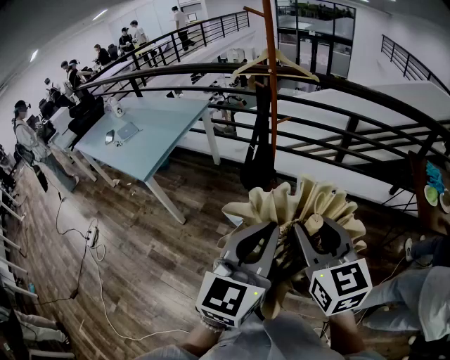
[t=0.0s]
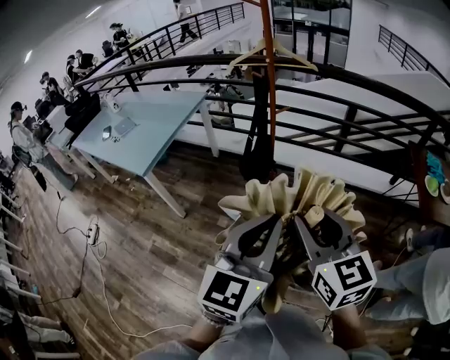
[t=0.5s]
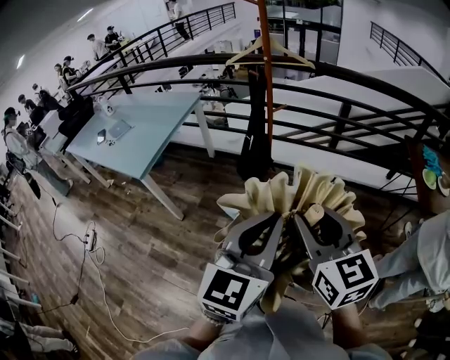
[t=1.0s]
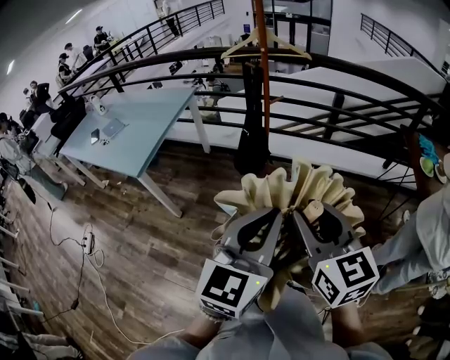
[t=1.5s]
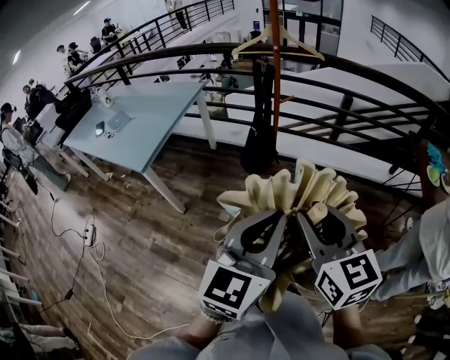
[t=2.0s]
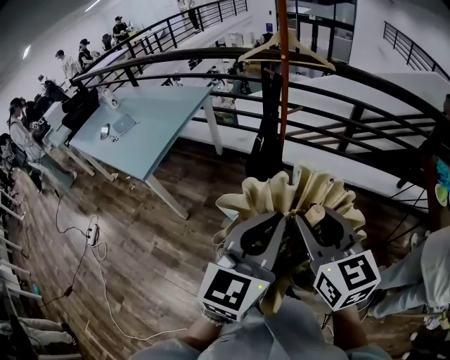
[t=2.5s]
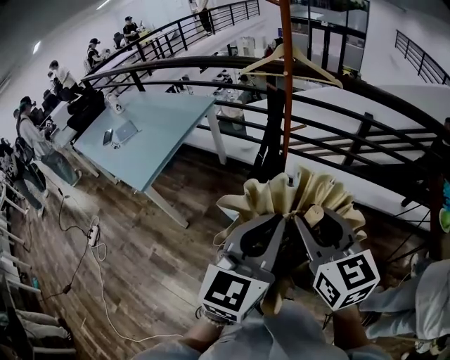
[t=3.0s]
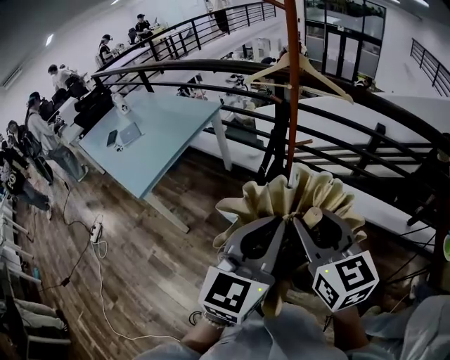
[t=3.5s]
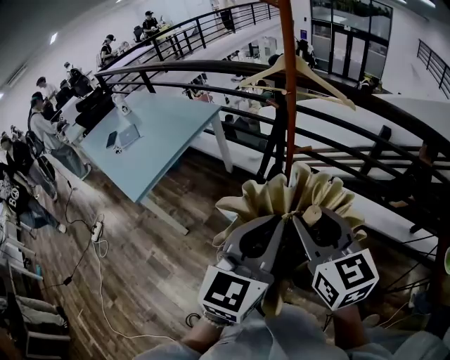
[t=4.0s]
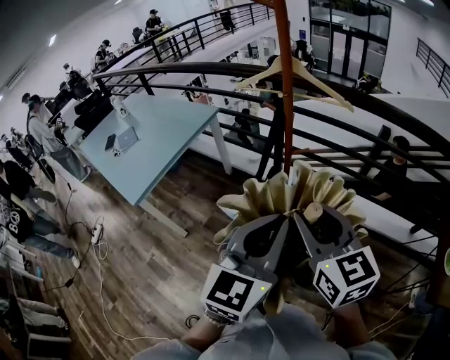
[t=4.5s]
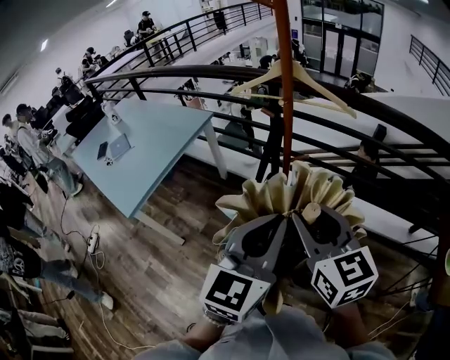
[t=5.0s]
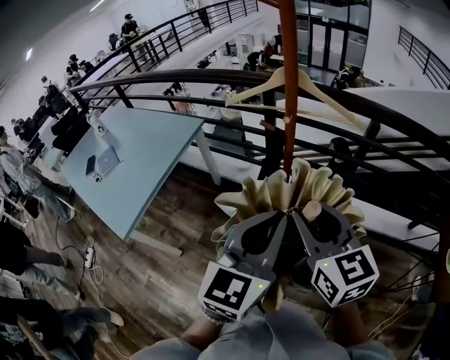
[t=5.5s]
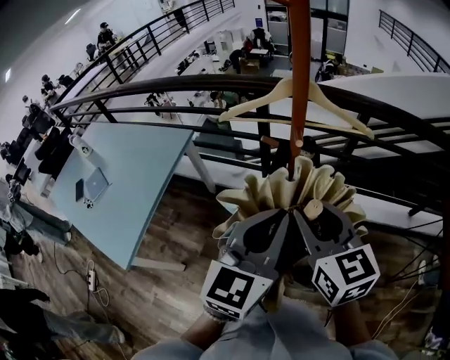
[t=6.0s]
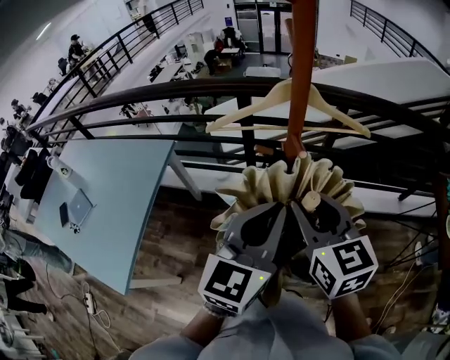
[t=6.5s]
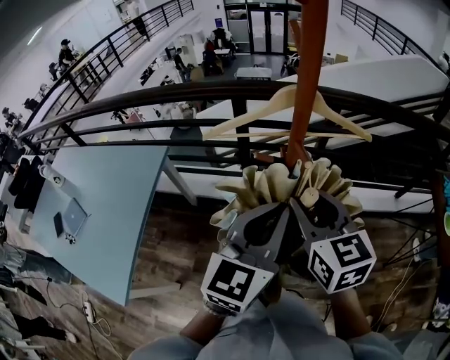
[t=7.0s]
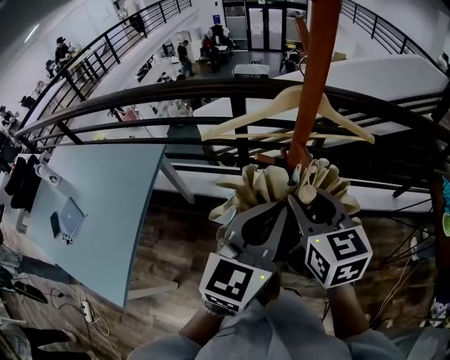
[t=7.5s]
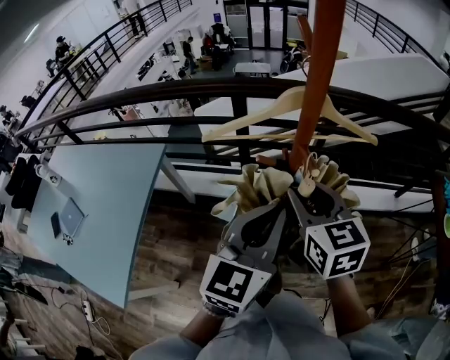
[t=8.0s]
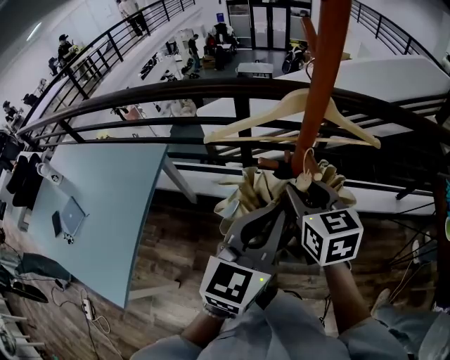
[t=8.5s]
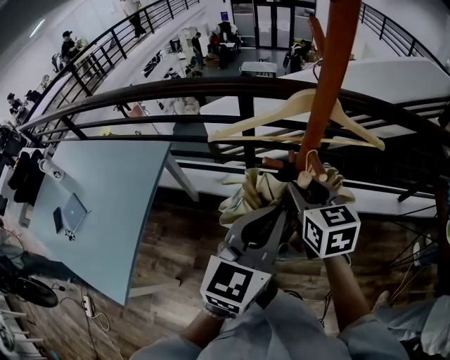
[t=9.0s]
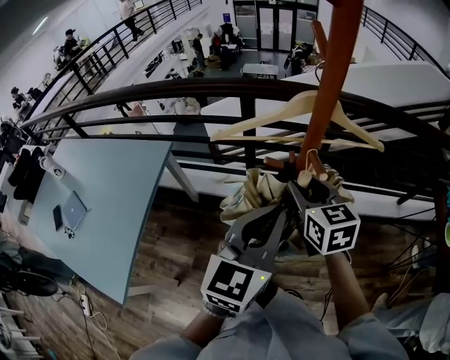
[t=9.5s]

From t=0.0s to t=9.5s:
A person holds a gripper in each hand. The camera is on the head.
From t=0.0s to t=2.0s: The left gripper changes place by roughly 5 cm; the right gripper travels to the left by roughly 5 cm.
From t=2.0s to t=4.0s: Both grippers travel together forward, some 25 cm.
From t=4.0s to t=5.5s: The grippers both shift forward by roughly 15 cm.
From t=5.5s to t=7.5s: The left gripper moves forward and to the left, roughly 15 cm; the right gripper shifts about 15 cm forward, and turns by some 20 degrees.
From t=7.5s to t=9.5s: The right gripper travels forward and downward by about 10 cm.

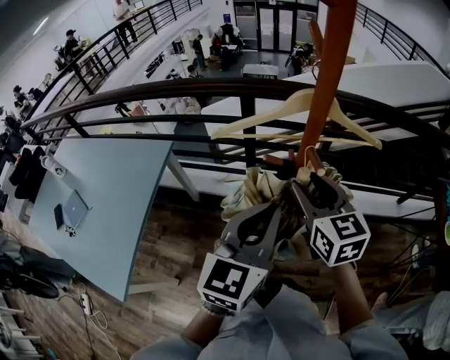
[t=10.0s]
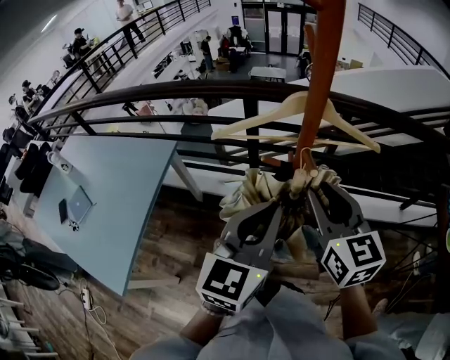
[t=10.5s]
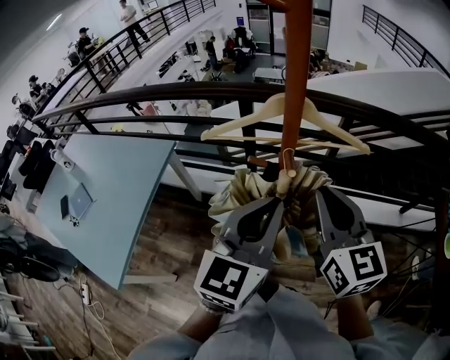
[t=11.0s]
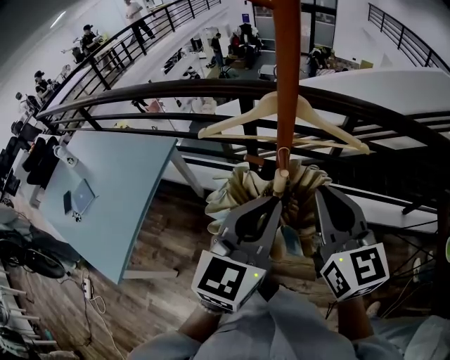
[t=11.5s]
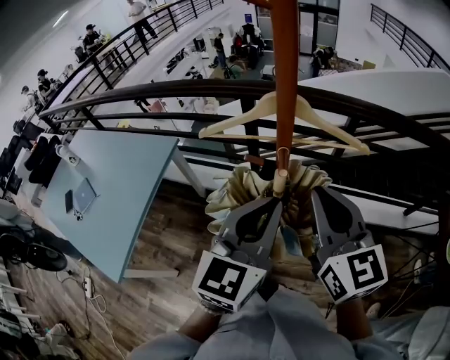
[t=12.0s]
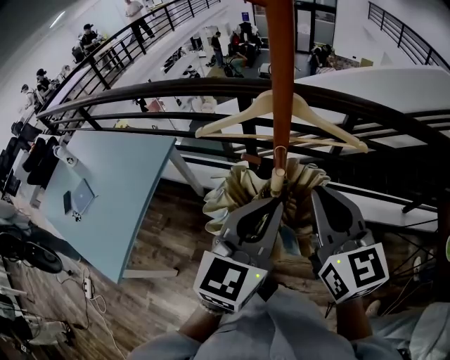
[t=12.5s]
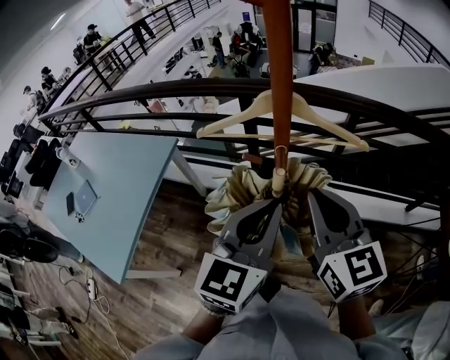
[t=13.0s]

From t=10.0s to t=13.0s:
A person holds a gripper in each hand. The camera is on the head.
From t=10.0s to t=11.5s: The right gripper heads upward, to the right and backward, covering roughly 10 cm, and closes. The left gripper is displaced to the right by roughly 5 cm.
From t=11.5s to t=13.0s: Both grippers stay about where they are.

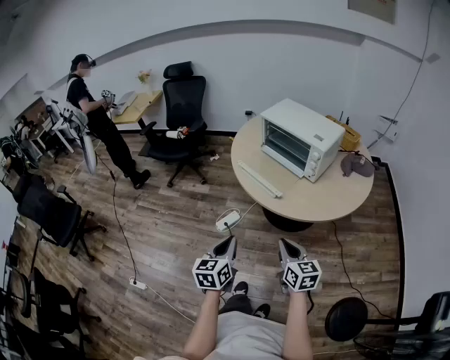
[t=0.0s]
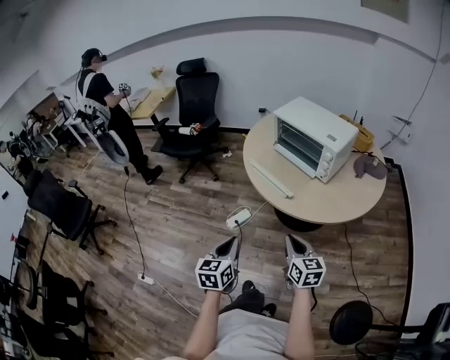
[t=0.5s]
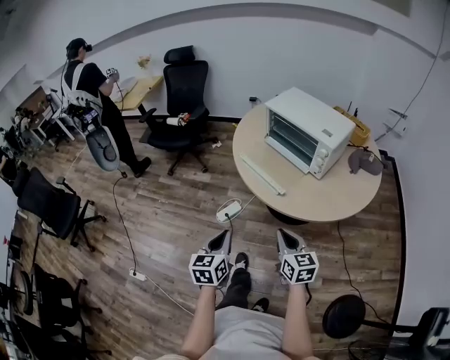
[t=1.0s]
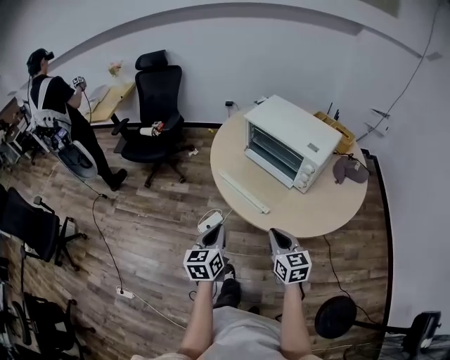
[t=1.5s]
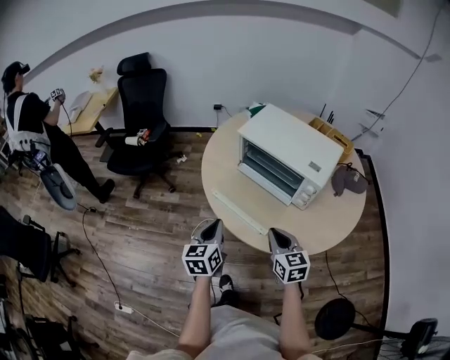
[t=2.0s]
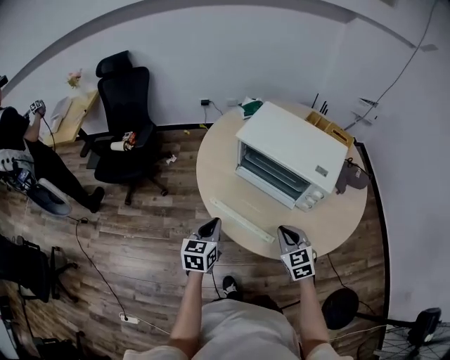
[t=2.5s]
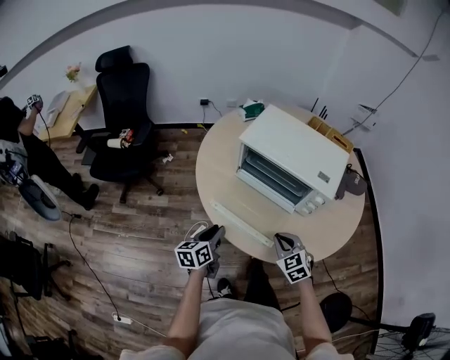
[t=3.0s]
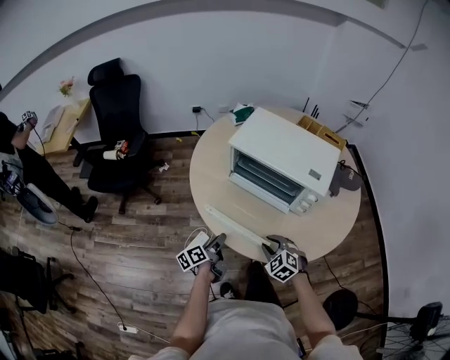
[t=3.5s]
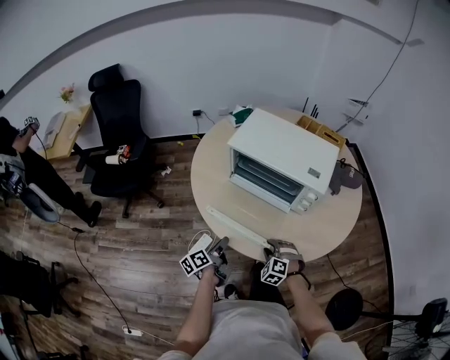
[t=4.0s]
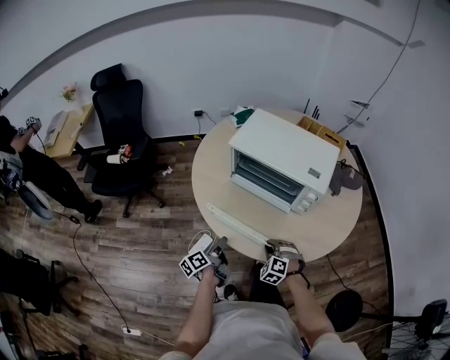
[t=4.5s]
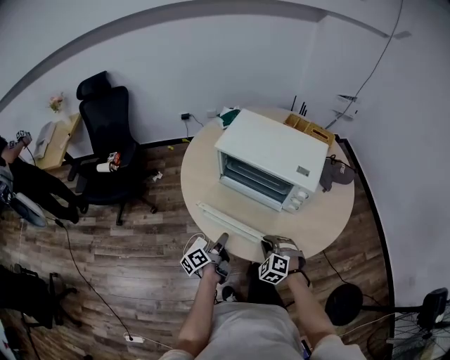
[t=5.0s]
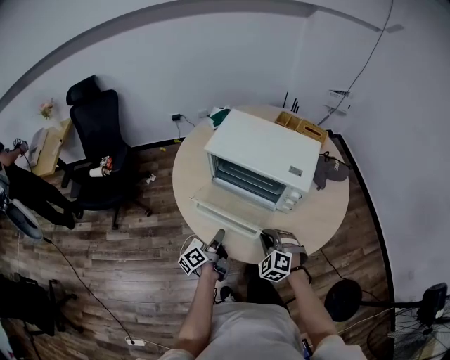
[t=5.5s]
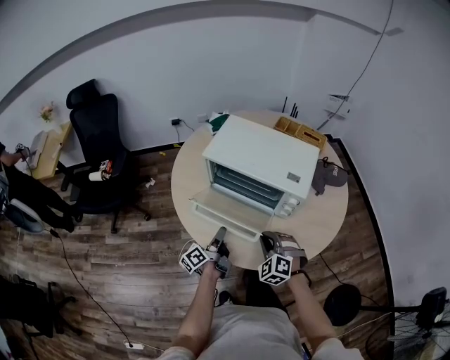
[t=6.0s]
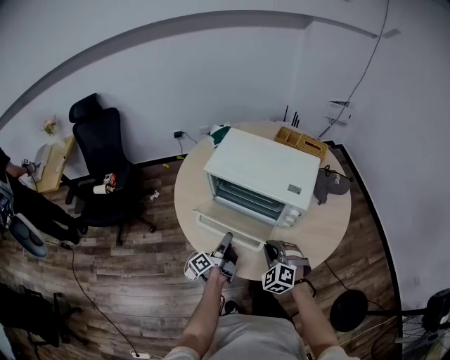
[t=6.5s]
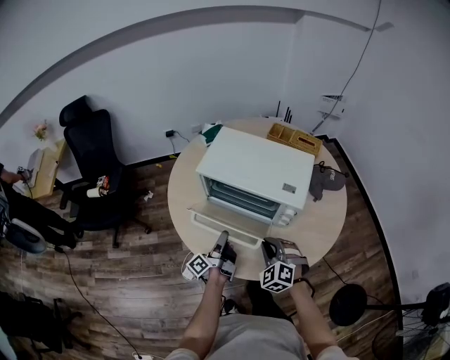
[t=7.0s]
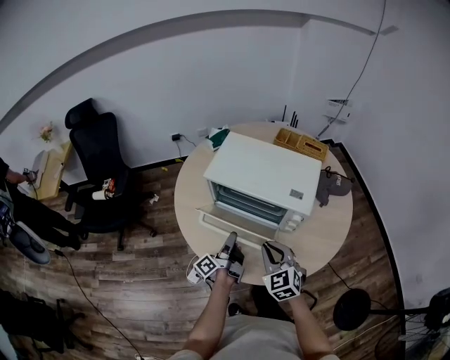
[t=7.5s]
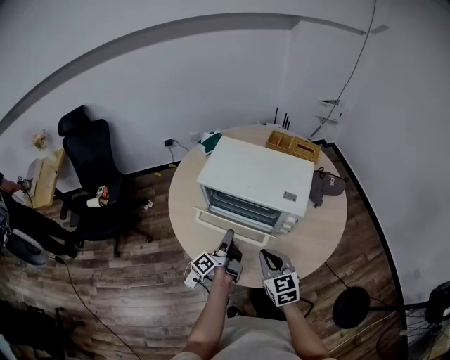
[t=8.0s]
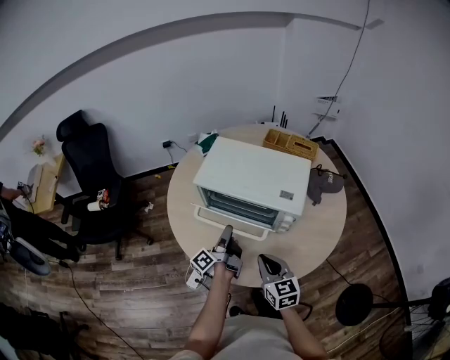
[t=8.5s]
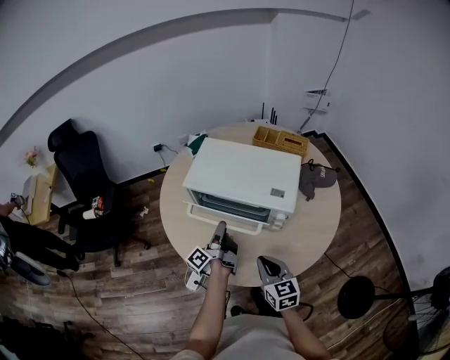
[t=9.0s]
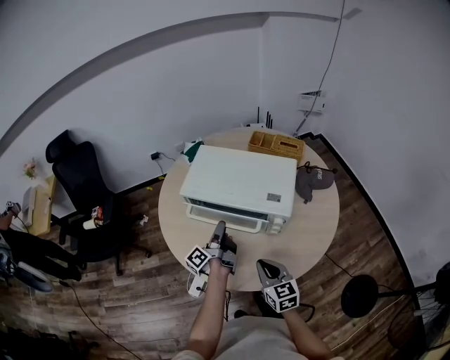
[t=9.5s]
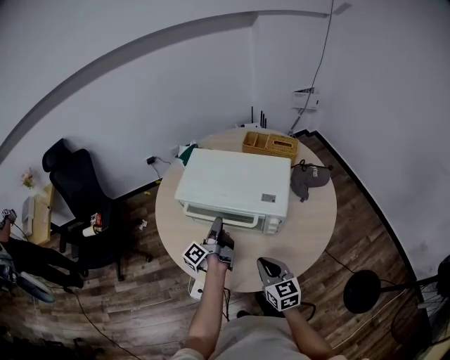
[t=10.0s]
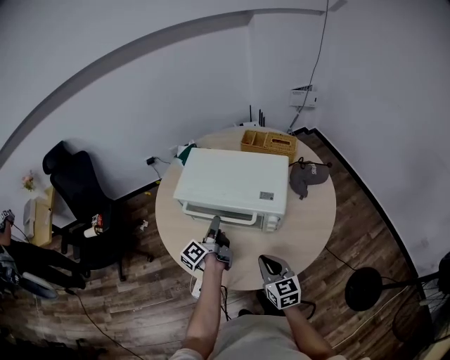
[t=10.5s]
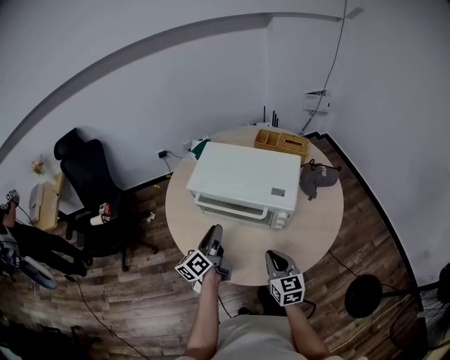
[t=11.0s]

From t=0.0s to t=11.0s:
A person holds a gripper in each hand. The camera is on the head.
From t=0.0s to t=2.0s: Both grippers travel together forward, roughly 30 cm.
From t=2.0s to t=3.5s: The grippers both shift downward by about 15 cm. The right gripper rotates approximately 50 degrees. Meanwhile the left gripper twists some 50 degrees counterclockwise, seen from behind, and opens.
From t=3.5s to t=5.5s: The left gripper moves roughly 5 cm. Meanwhile the right gripper shifts roughly 5 cm upward.
From t=5.5s to t=7.5s: The right gripper is displaced upward by some 10 cm, and turns by roughly 40 degrees; the left gripper goes about 10 cm forward.
From t=7.5s to t=9.0s: The right gripper changes its angle by about 30 degrees; the left gripper travels forward by roughly 5 cm.
From t=9.0s to t=11.0s: The left gripper is displaced upward by about 5 cm, and rotates approximately 40 degrees.

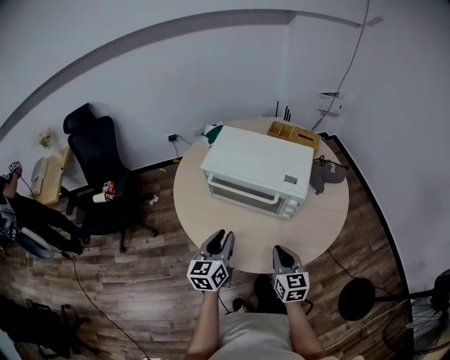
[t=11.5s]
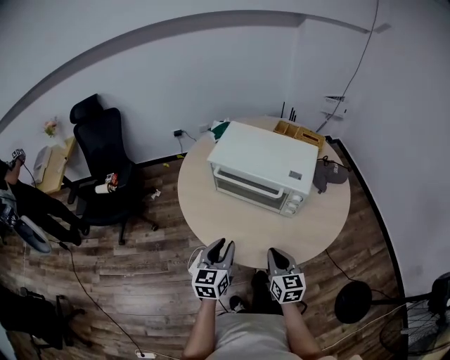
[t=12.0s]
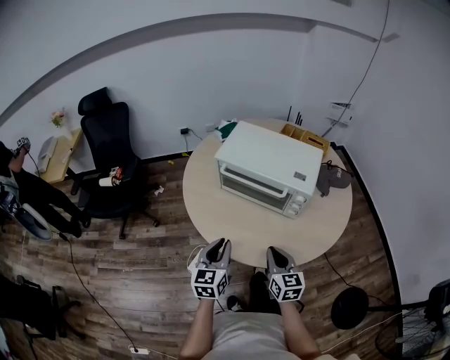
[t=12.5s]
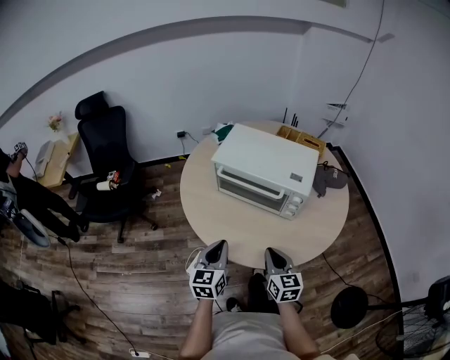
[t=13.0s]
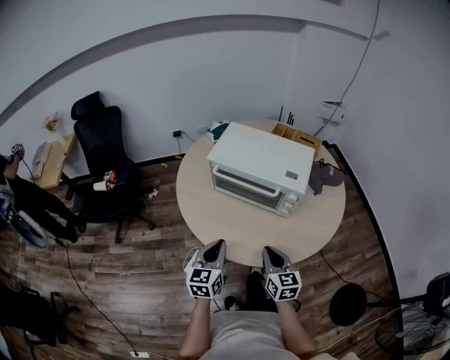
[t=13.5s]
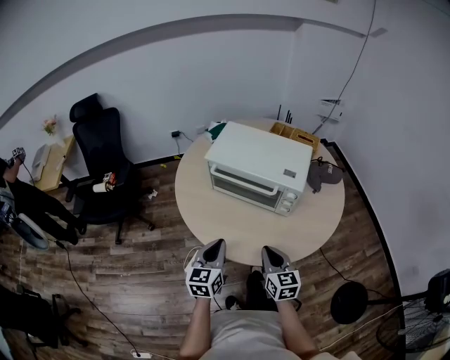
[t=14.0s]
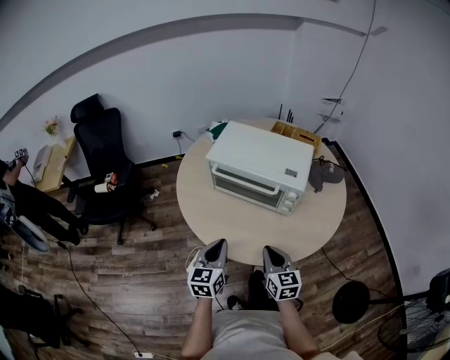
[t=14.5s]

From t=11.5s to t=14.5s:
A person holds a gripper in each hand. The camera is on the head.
From t=11.5s to t=13.0s: The left gripper moves backward, approximately 5 cm, and closes up.
From t=13.0s to t=14.5s: The two grippers keep their place.
